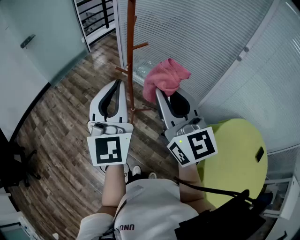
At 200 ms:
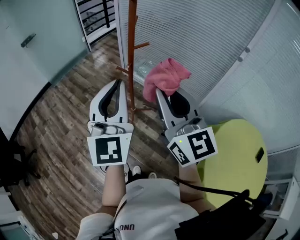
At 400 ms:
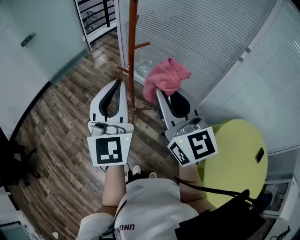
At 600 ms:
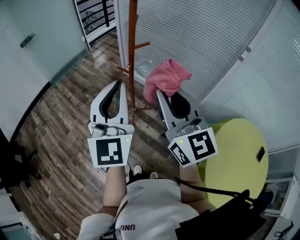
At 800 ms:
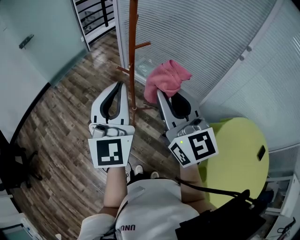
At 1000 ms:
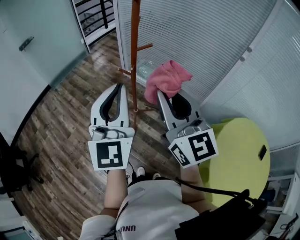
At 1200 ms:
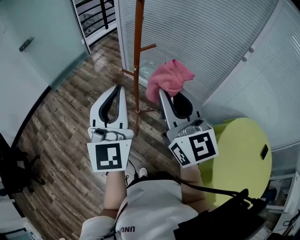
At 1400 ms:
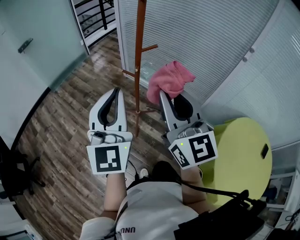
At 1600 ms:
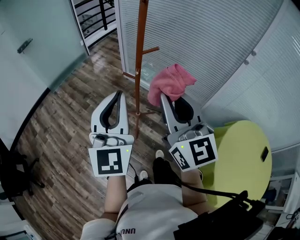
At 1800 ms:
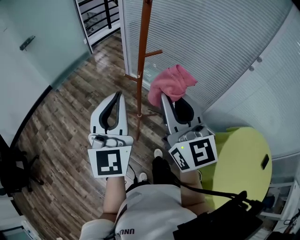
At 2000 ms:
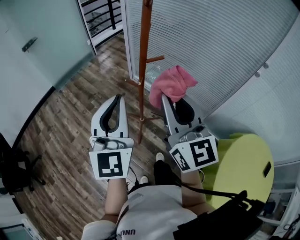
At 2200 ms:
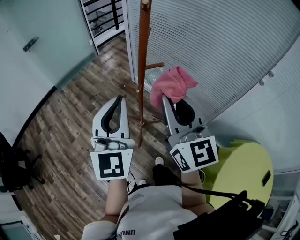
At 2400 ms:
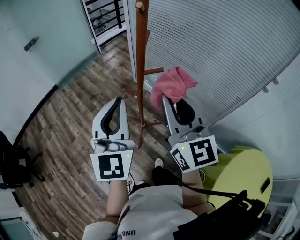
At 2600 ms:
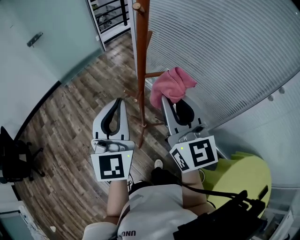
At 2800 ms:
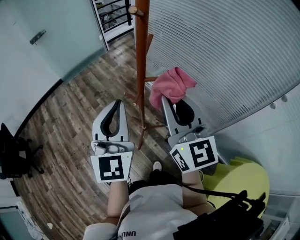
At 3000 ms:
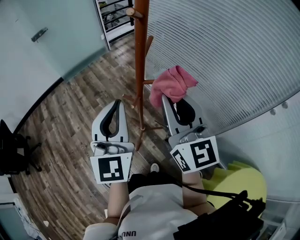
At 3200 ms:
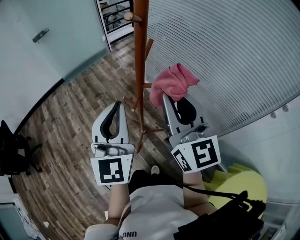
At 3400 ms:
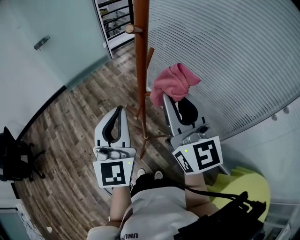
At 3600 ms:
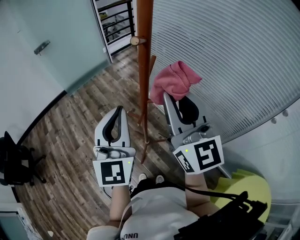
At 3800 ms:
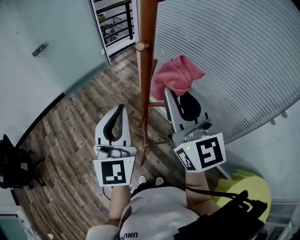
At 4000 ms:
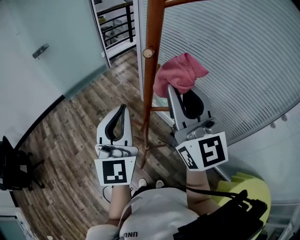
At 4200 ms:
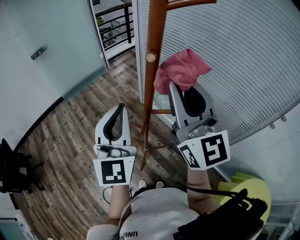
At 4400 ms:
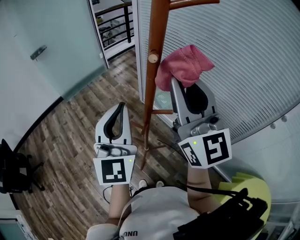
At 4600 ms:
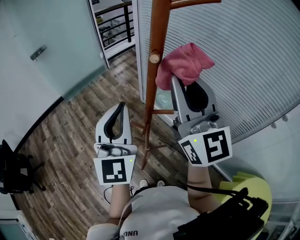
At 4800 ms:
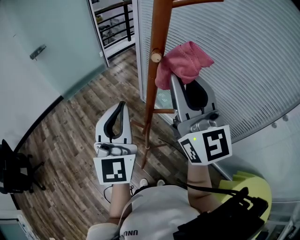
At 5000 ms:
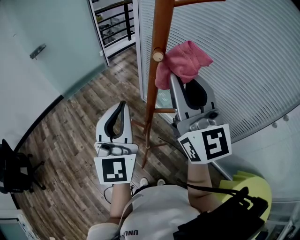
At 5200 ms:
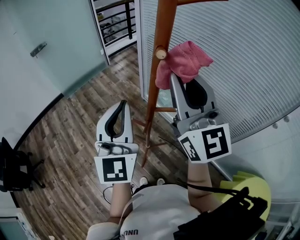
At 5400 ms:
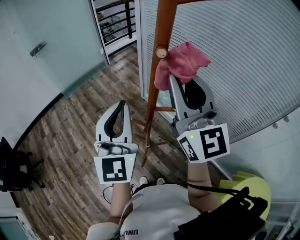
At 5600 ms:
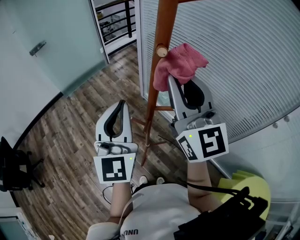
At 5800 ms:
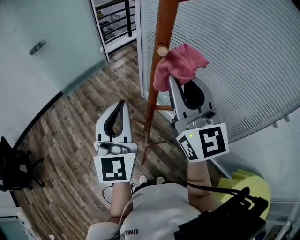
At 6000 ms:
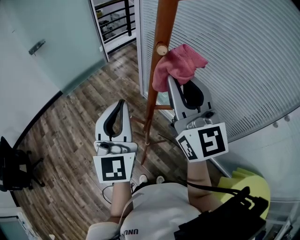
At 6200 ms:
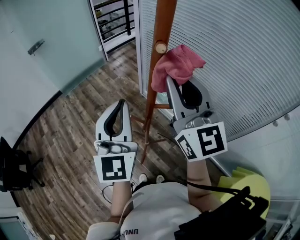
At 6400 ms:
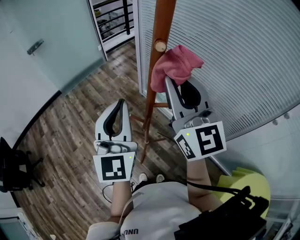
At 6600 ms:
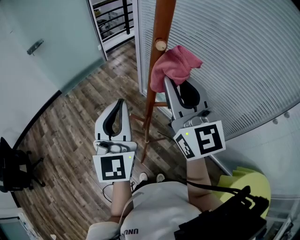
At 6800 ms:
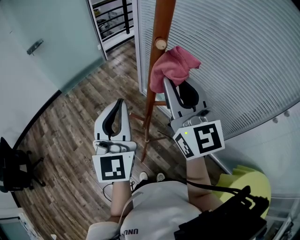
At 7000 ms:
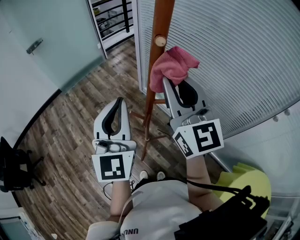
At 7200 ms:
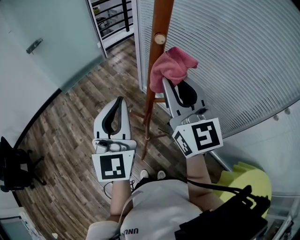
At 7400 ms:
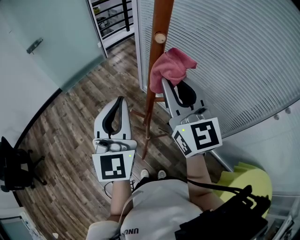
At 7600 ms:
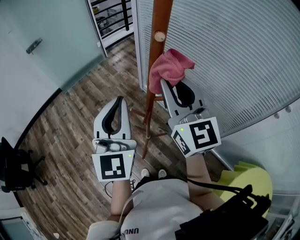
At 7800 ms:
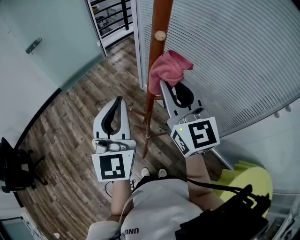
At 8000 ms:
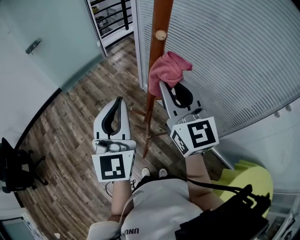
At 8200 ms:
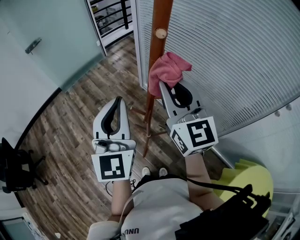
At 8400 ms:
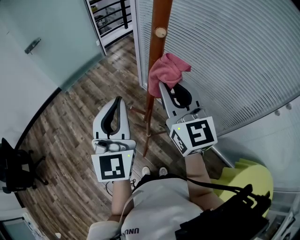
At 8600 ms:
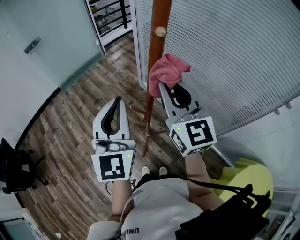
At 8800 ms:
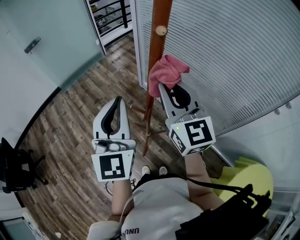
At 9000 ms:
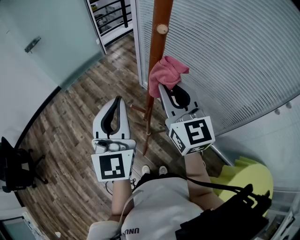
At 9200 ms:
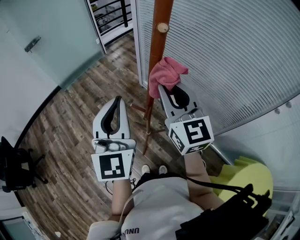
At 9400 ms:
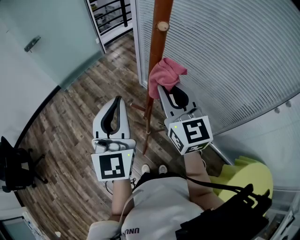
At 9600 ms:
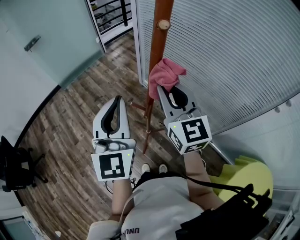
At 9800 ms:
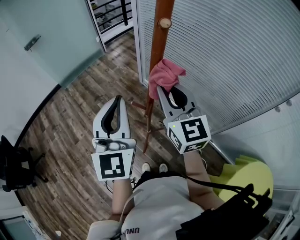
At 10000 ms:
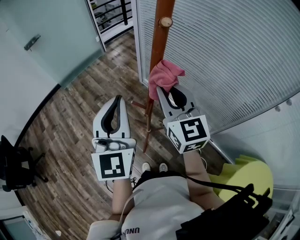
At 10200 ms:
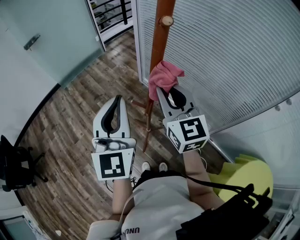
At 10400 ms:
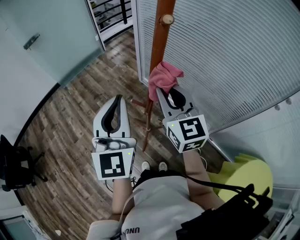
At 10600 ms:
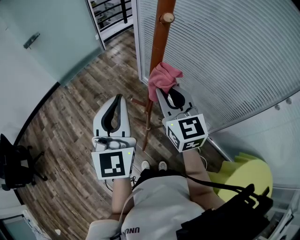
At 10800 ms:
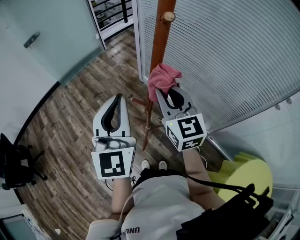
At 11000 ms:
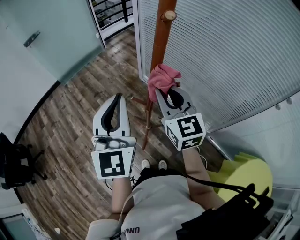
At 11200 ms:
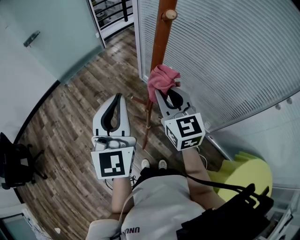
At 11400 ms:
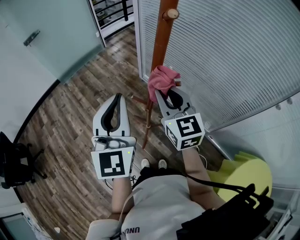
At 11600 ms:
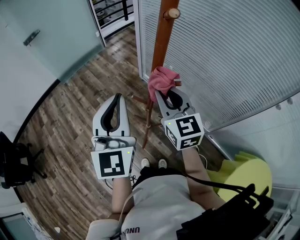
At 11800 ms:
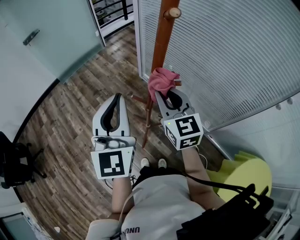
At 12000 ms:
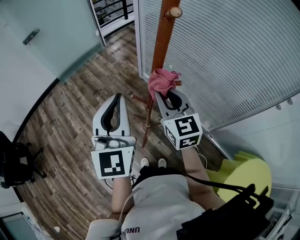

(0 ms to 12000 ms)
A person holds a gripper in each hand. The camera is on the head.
0 ms - 1600 ms: The left gripper changes place by roughly 5 cm.
1600 ms - 3000 ms: The grippers both shift forward and to the right by some 15 cm.
3000 ms - 4400 ms: The left gripper travels forward by approximately 5 cm; the right gripper heads upward and forward, covering some 15 cm.
4400 ms - 6000 ms: The grippers make only small movements.
6000 ms - 7600 ms: There are only small adjustments of the grippers.
7600 ms - 9000 ms: There are only small adjustments of the grippers.
9000 ms - 10400 ms: The grippers move only a little.
10400 ms - 12000 ms: The right gripper is displaced downward by roughly 5 cm.

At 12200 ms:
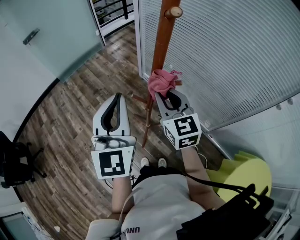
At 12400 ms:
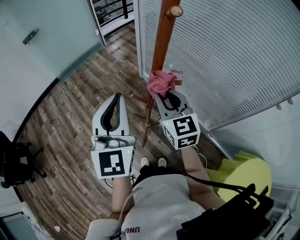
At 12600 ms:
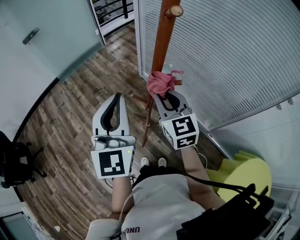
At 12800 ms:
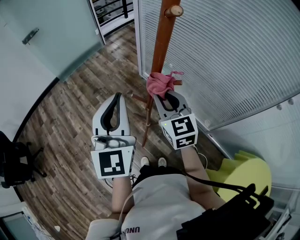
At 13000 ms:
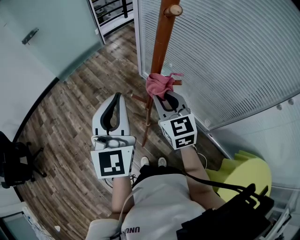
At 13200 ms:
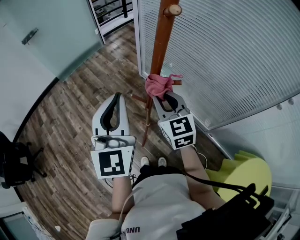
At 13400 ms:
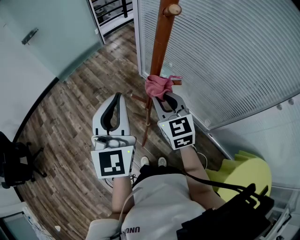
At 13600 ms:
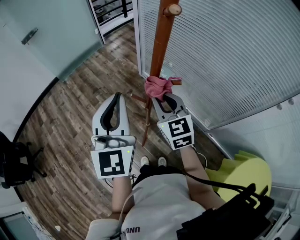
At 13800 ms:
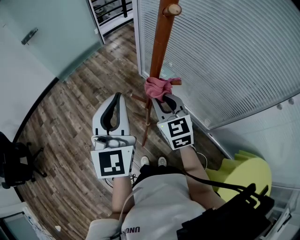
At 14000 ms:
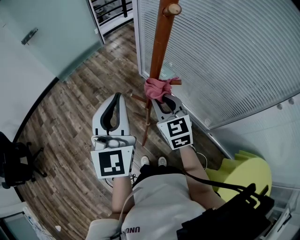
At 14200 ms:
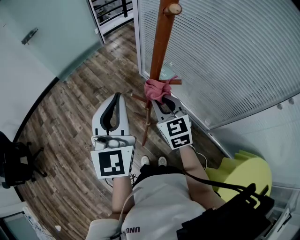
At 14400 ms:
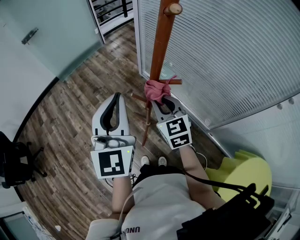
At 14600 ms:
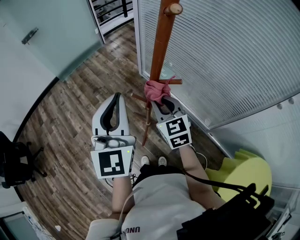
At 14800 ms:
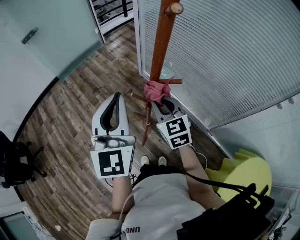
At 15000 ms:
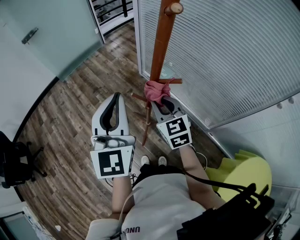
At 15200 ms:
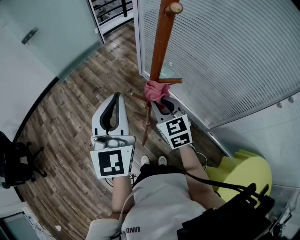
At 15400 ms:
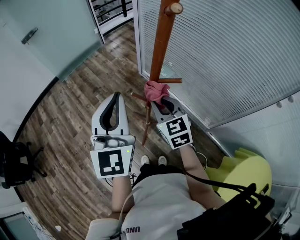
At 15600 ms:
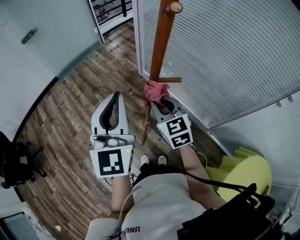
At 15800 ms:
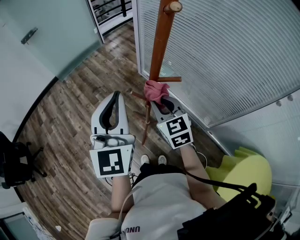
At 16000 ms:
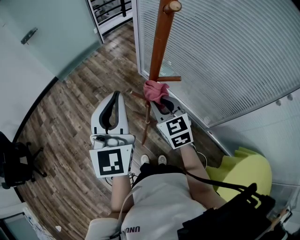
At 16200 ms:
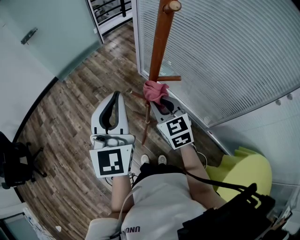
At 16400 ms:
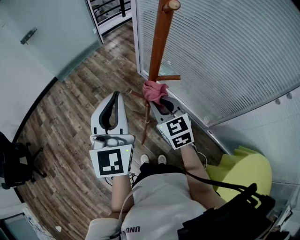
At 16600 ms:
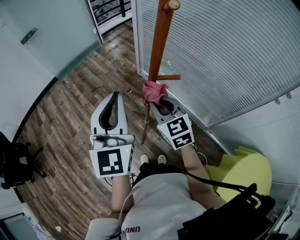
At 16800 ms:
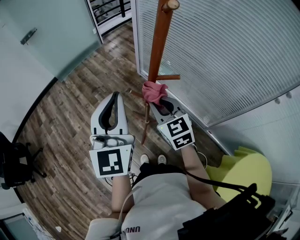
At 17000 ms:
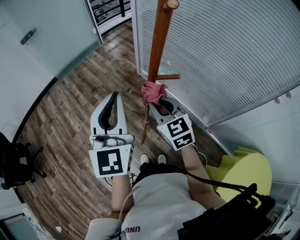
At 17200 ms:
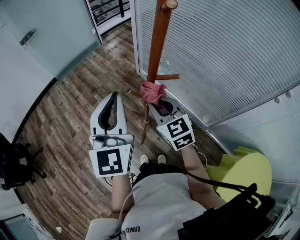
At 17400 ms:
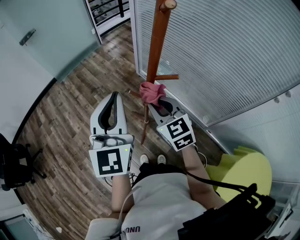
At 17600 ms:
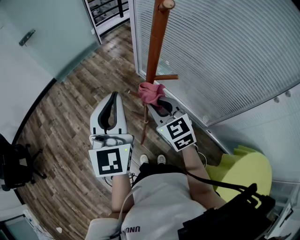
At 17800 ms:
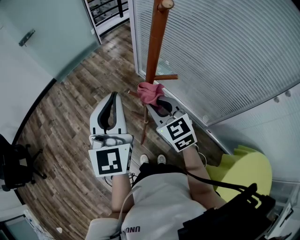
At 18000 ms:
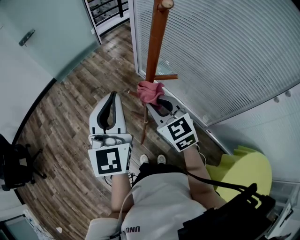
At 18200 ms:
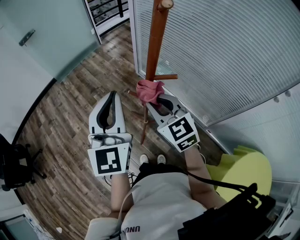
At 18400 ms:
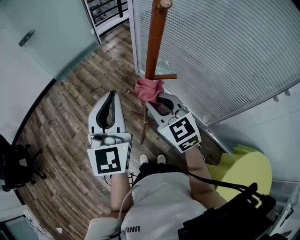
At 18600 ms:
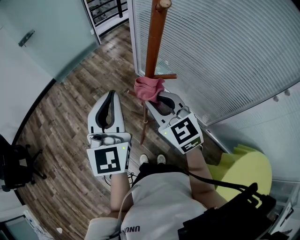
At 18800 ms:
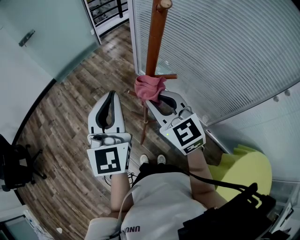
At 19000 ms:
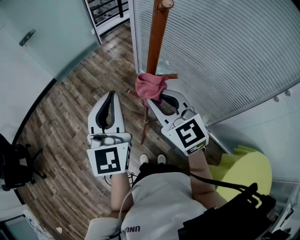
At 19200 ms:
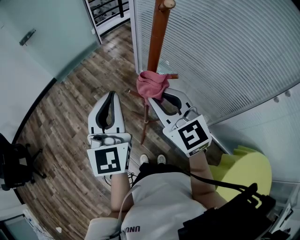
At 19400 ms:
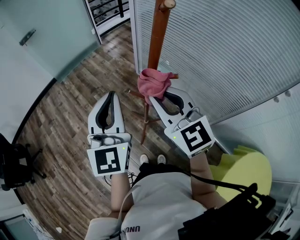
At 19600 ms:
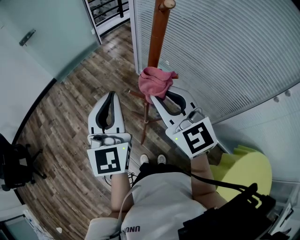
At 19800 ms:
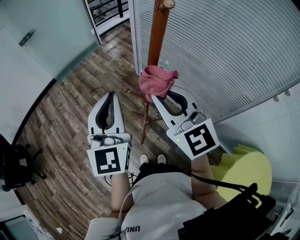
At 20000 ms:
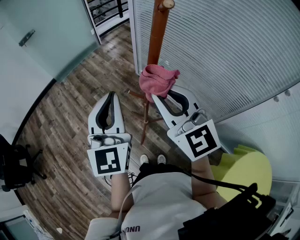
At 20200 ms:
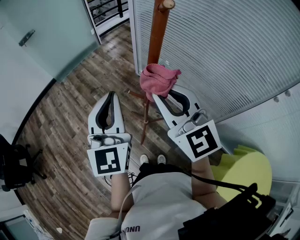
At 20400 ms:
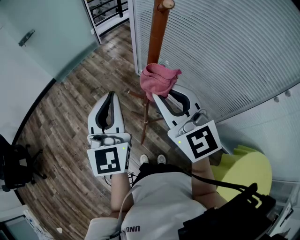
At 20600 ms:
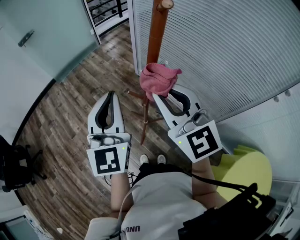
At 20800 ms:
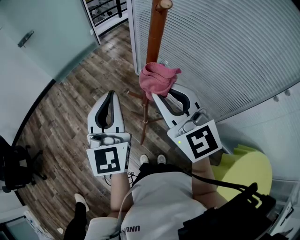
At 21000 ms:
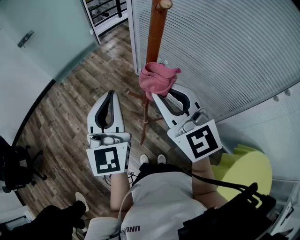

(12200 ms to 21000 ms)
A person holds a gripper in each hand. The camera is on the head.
12200 ms - 13600 ms: The grippers make only small movements.
13600 ms - 18000 ms: There are only small adjustments of the grippers.
18000 ms - 19600 ms: The right gripper heads upward, covering some 10 cm.
19600 ms - 21000 ms: The grippers stay close to where they were, moving slightly.

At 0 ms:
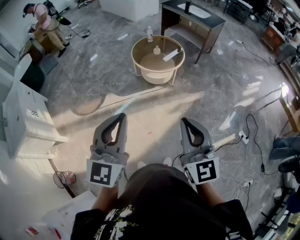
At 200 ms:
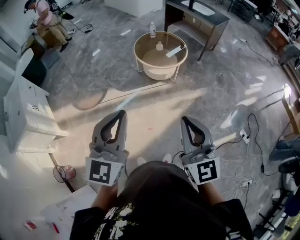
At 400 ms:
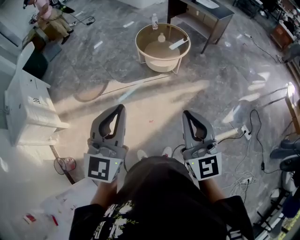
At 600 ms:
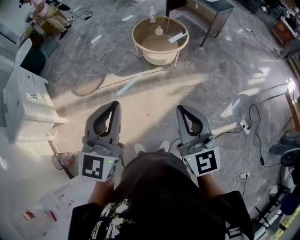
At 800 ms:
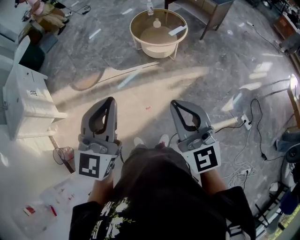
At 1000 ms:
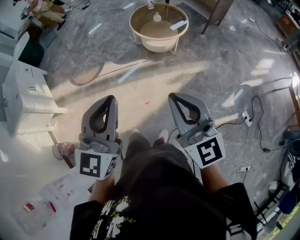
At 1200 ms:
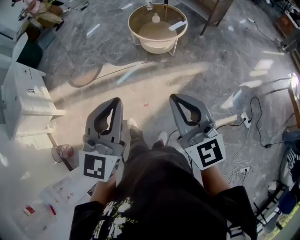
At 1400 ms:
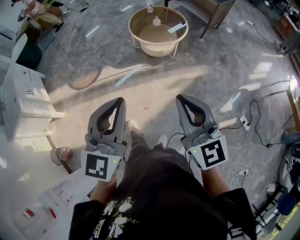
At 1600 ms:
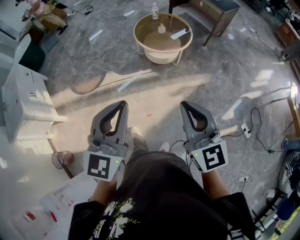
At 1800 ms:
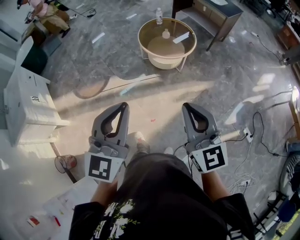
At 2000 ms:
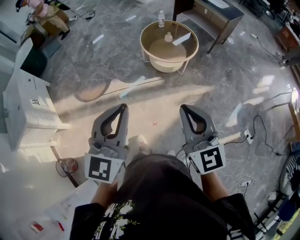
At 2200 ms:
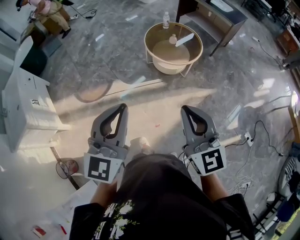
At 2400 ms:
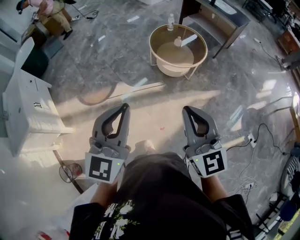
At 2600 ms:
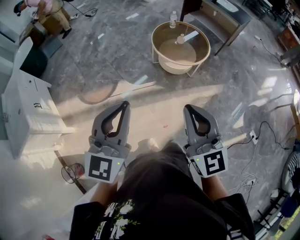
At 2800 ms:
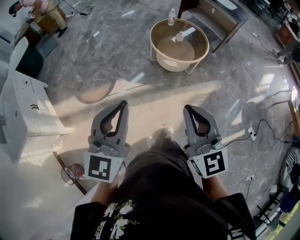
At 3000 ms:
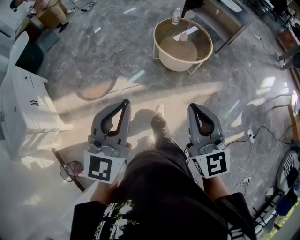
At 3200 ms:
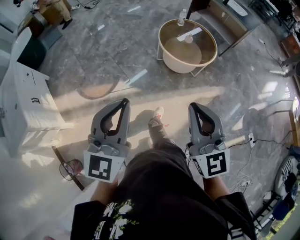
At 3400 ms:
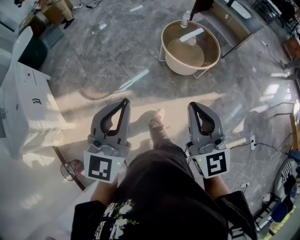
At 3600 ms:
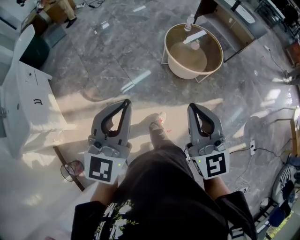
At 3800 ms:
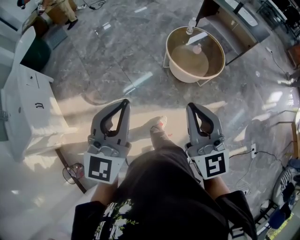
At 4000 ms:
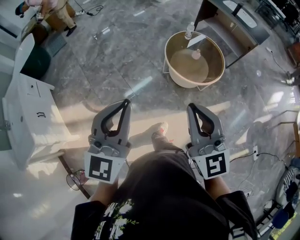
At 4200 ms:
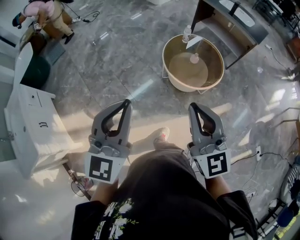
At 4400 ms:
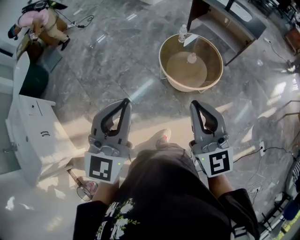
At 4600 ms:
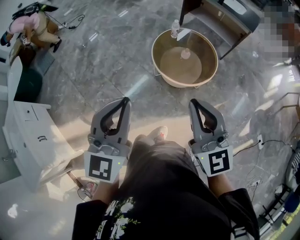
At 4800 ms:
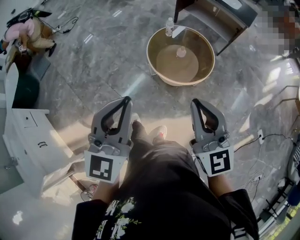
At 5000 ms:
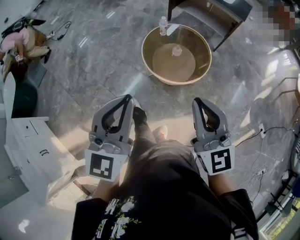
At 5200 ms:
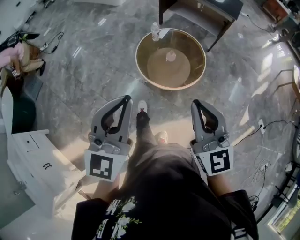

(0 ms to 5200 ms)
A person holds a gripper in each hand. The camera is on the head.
0 ms - 1800 ms: The two grippers go about 10 cm forward.
1800 ms - 3400 ms: Both grippers travel together to the left and forward, approximately 35 cm.
3400 ms - 5200 ms: The grippers both shift forward by some 40 cm.
